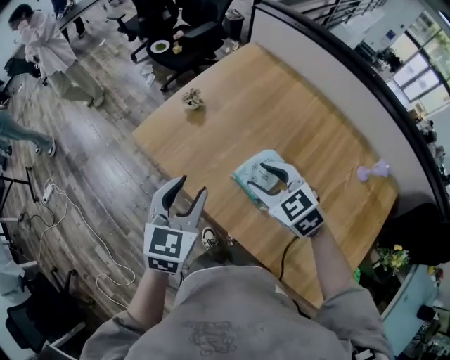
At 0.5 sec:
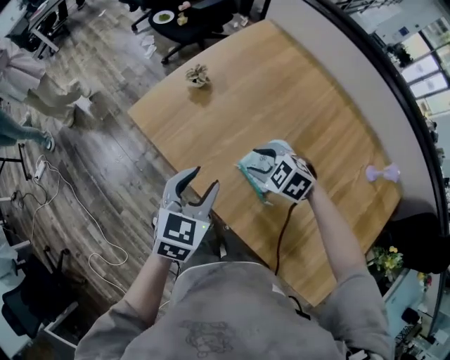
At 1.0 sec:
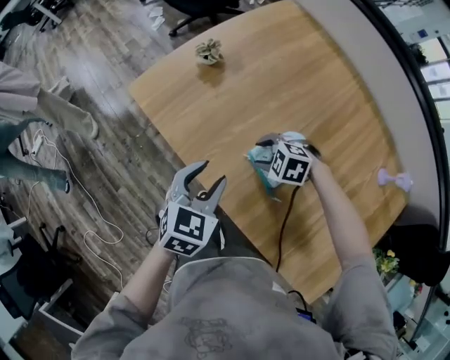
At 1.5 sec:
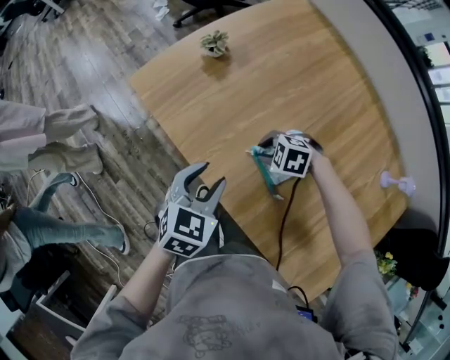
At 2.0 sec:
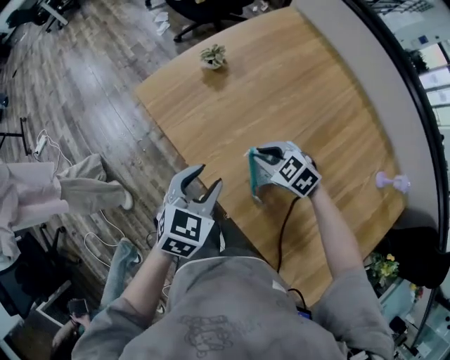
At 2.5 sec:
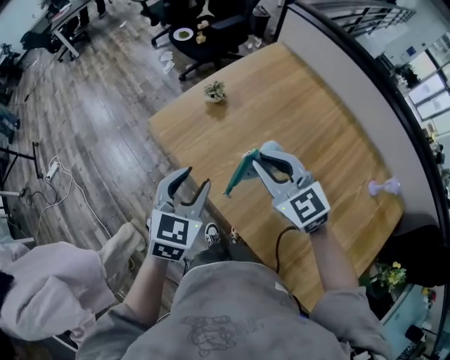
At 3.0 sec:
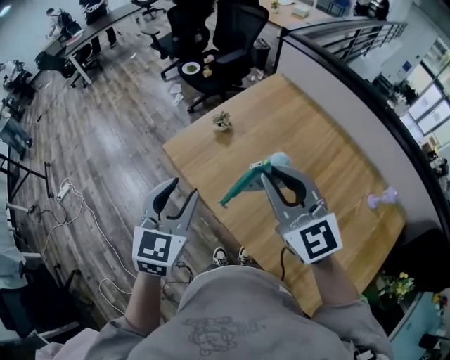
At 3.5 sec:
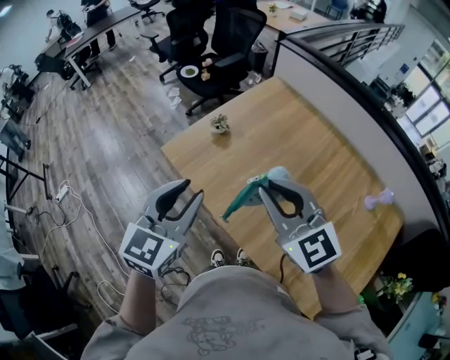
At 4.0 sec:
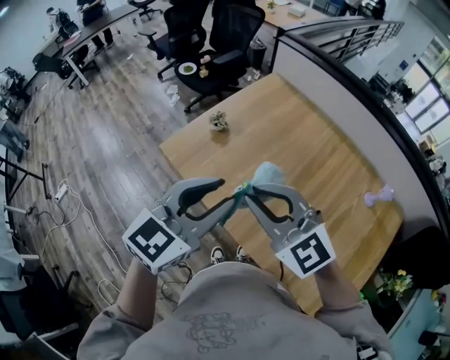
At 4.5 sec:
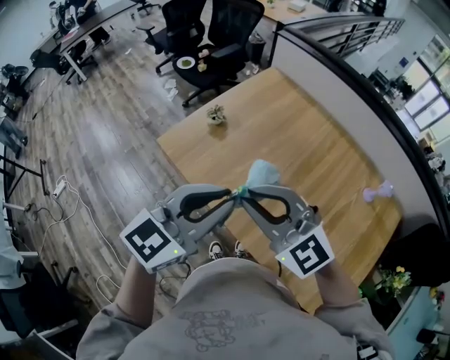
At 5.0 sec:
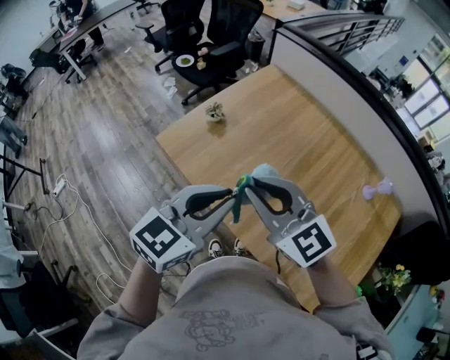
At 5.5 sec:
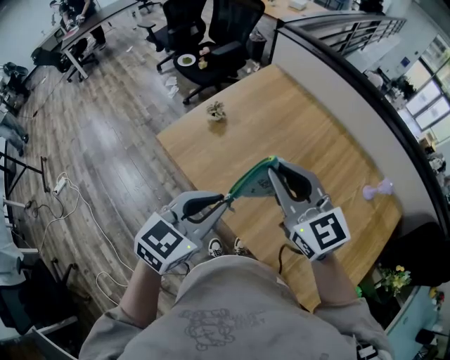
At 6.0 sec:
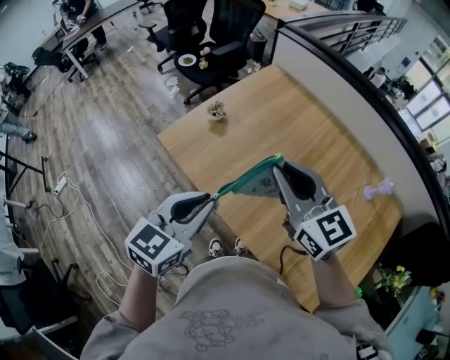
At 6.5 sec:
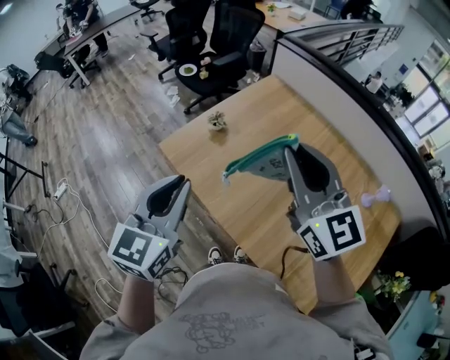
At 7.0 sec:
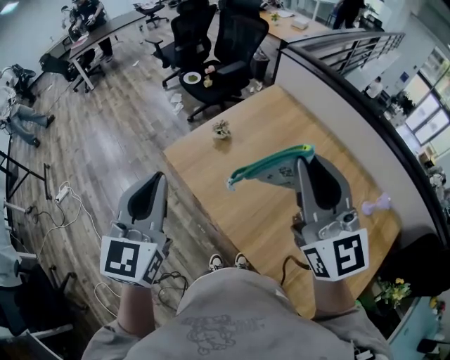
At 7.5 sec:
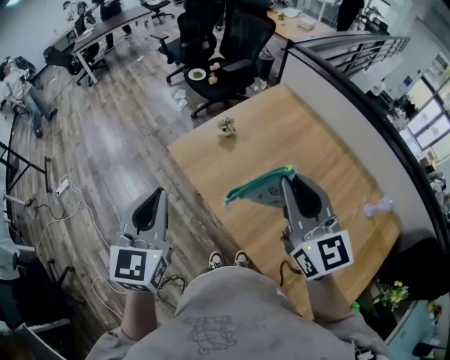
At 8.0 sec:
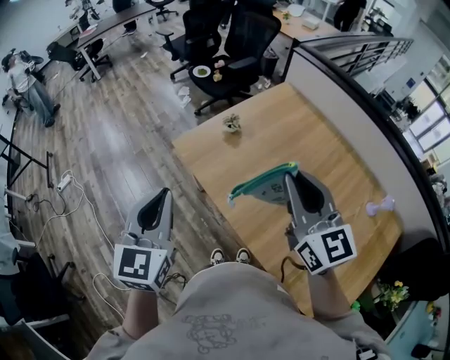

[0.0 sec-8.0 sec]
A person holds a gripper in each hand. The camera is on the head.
0.0 sec to 2.0 sec: The grippers both shift downward by approximately 15 cm. The right gripper rotates some 20 degrees, and closes up.
2.0 sec to 4.0 sec: The grippers both shift upward by roughly 30 cm. The right gripper tilts its fingers about 40 degrees upward, while the left gripper turns by approximately 30 degrees.
4.0 sec to 6.0 sec: The left gripper goes some 10 cm downward, while the right gripper travels to the right by some 5 cm, and turns by roughly 30 degrees.
6.0 sec to 8.0 sec: The right gripper reaches approximately 10 cm upward, then returns, while the left gripper goes roughly 15 cm to the left and upward, and swivels some 40 degrees.

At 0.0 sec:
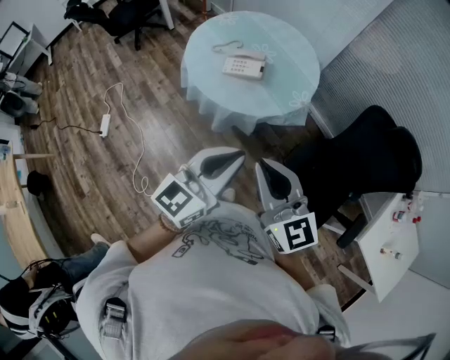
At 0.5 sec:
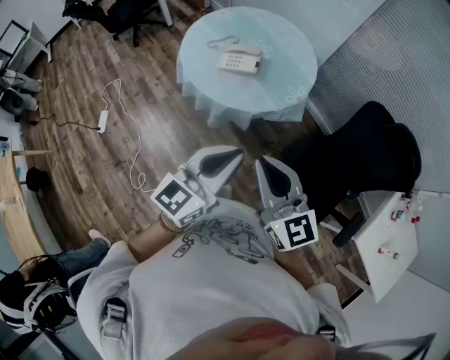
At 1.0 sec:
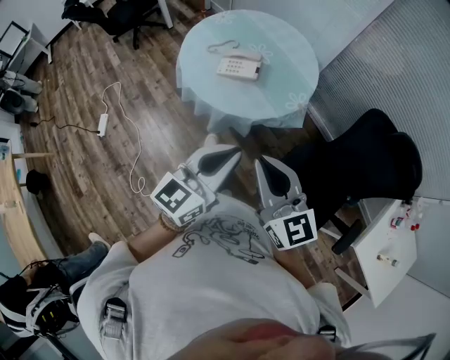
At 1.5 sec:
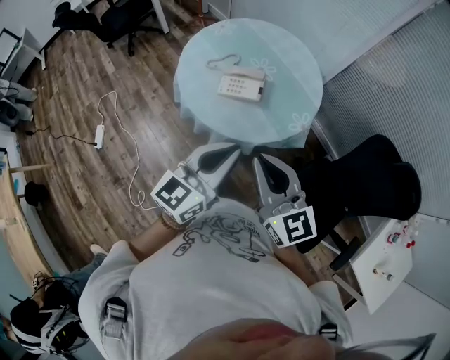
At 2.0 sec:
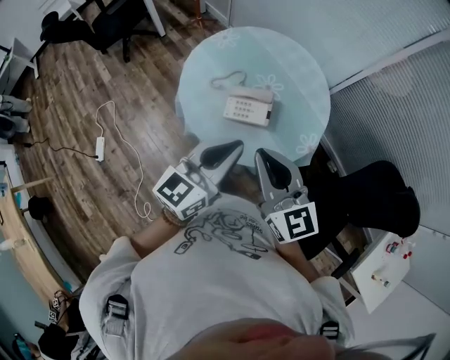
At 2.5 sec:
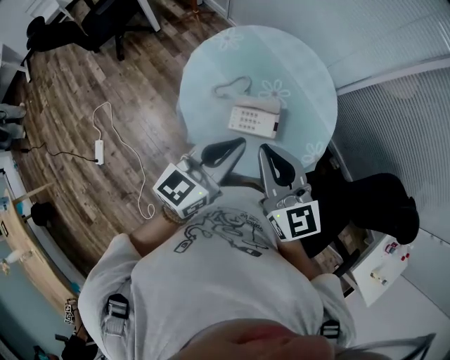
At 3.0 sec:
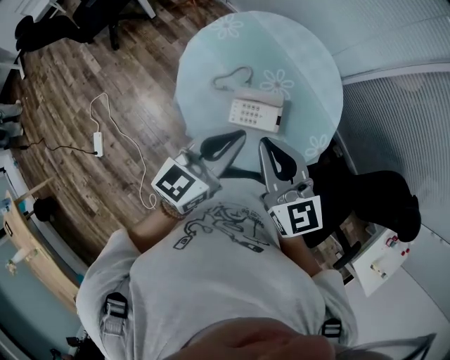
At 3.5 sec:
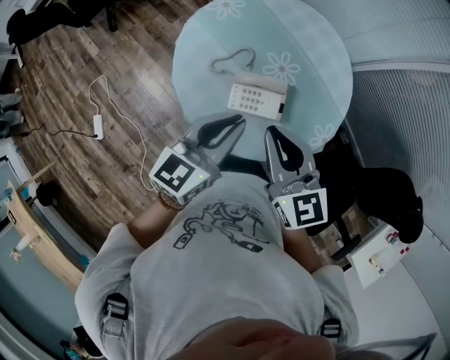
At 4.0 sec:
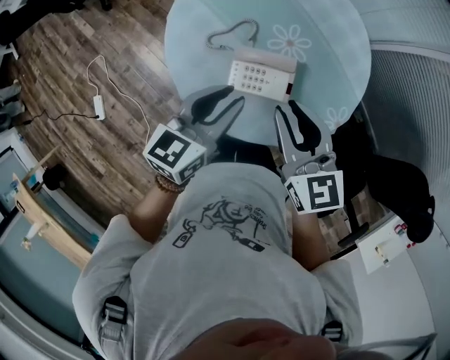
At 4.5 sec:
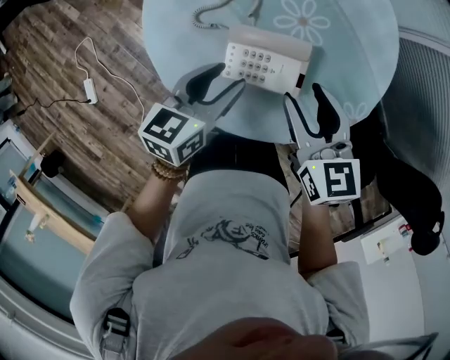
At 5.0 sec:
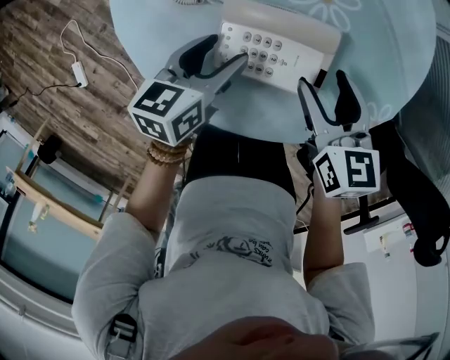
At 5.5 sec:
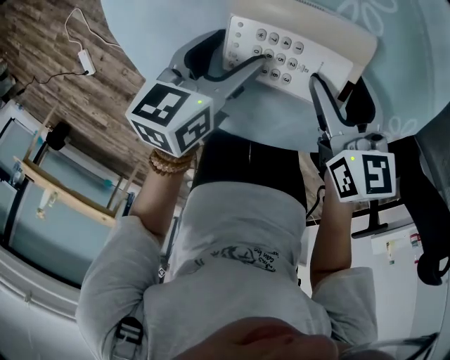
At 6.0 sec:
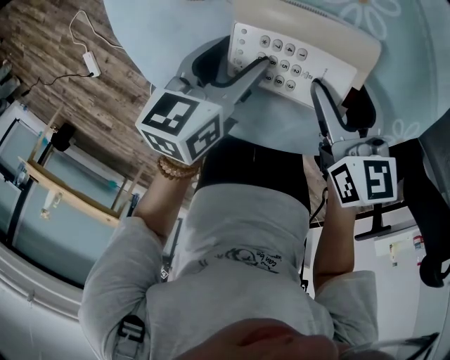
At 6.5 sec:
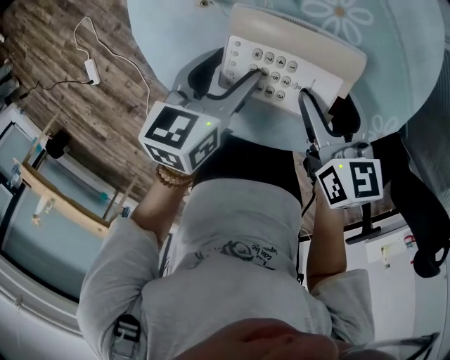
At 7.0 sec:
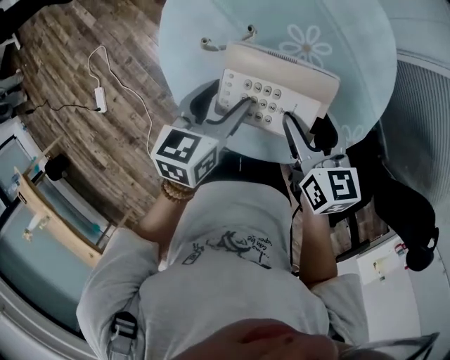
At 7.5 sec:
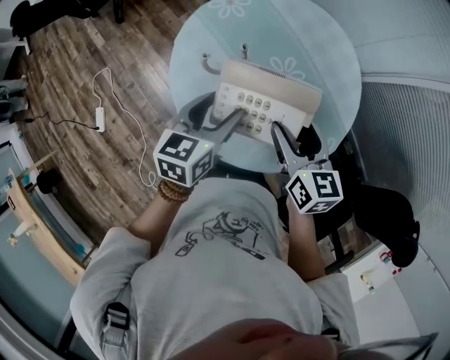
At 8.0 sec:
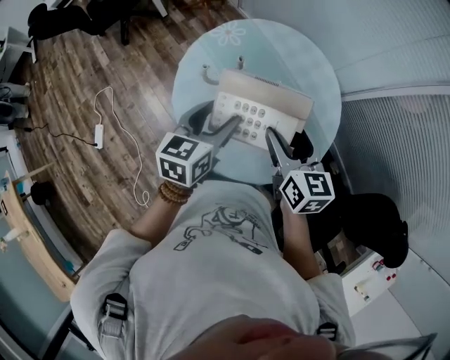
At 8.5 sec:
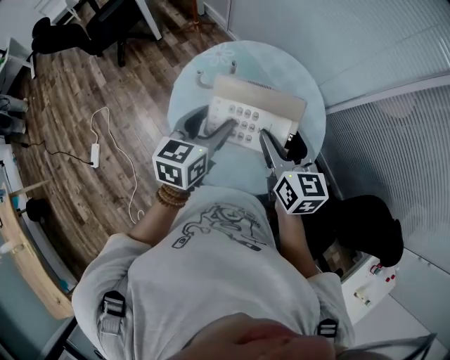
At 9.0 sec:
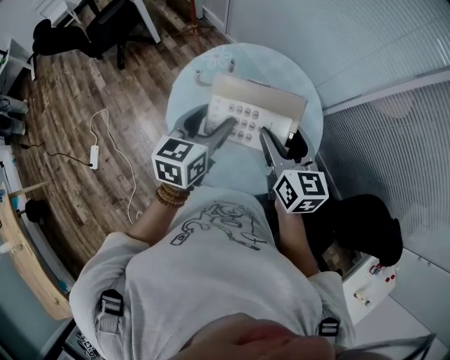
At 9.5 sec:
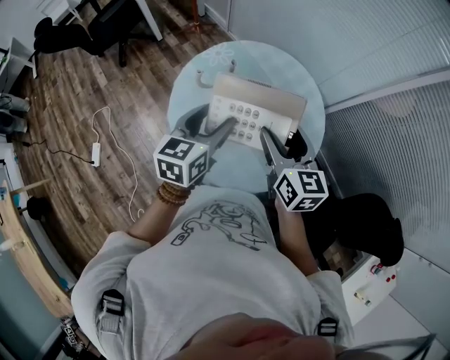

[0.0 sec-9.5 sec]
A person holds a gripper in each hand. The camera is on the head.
0.0 sec to 2.0 sec: The grippers both shift forward by approximately 35 cm.
2.0 sec to 4.0 sec: The two grippers go some 30 cm forward and downward. The left gripper turns by about 20 degrees.
4.0 sec to 5.5 sec: Both grippers move downward, some 35 cm. The left gripper turns by some 30 degrees, and opens. The right gripper swivels about 30 degrees, and opens its fingers.
5.5 sec to 7.5 sec: Both grippers move upward, some 35 cm.
7.5 sec to 9.5 sec: Both grippers move upward, about 15 cm.

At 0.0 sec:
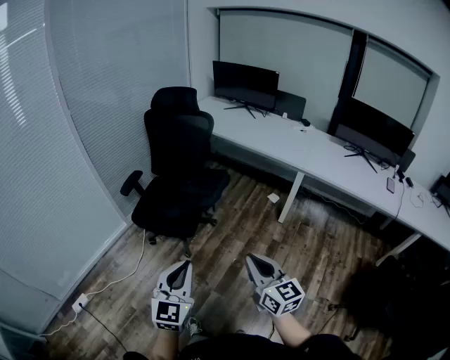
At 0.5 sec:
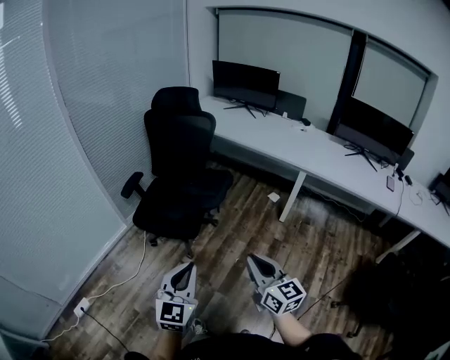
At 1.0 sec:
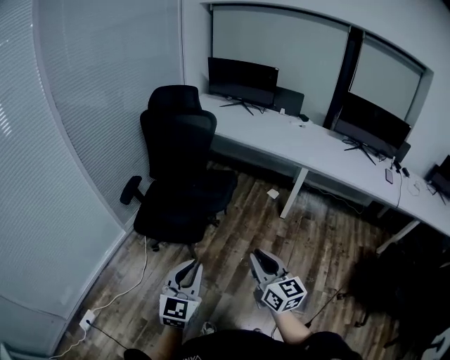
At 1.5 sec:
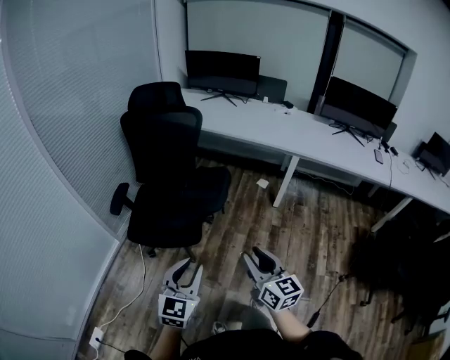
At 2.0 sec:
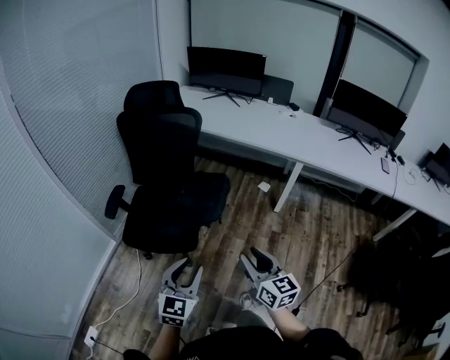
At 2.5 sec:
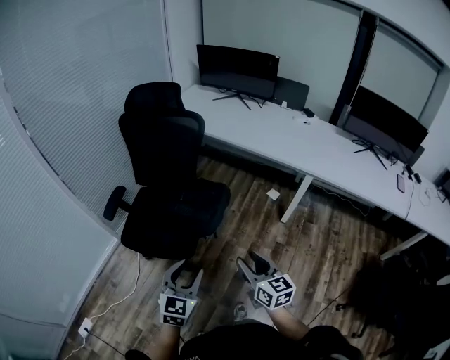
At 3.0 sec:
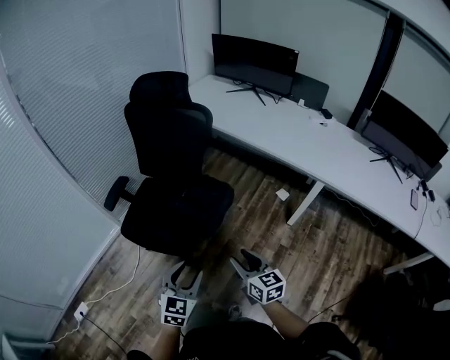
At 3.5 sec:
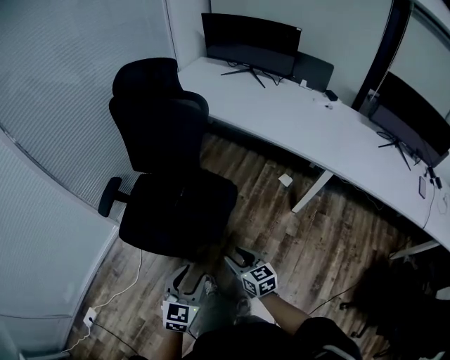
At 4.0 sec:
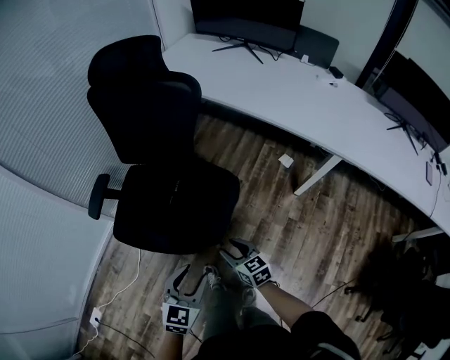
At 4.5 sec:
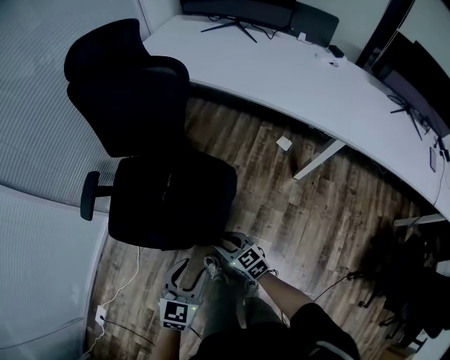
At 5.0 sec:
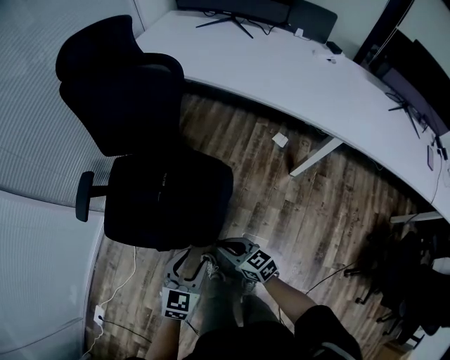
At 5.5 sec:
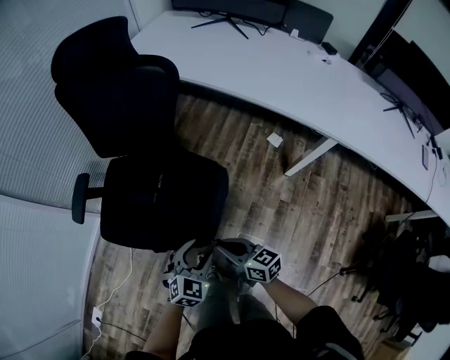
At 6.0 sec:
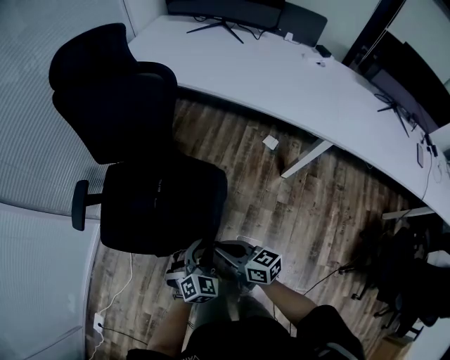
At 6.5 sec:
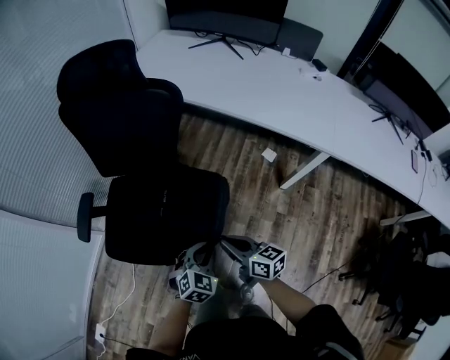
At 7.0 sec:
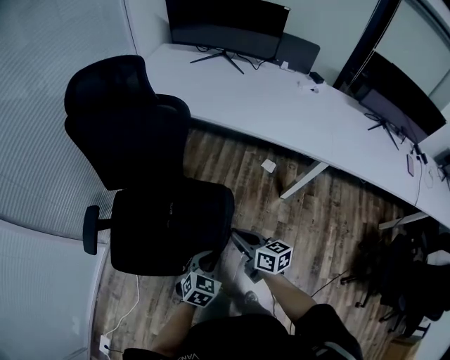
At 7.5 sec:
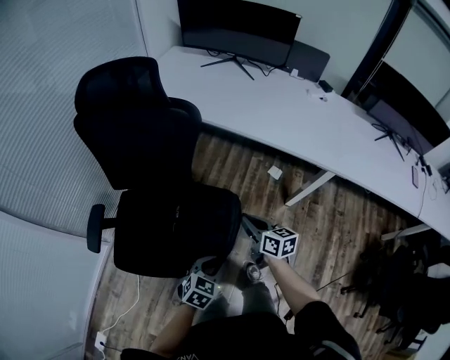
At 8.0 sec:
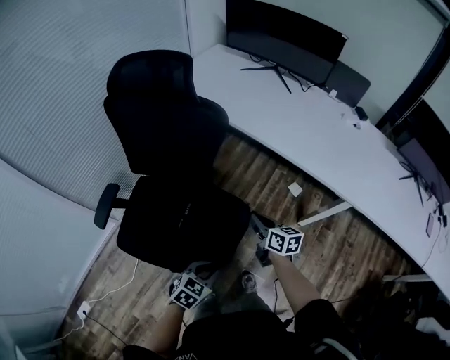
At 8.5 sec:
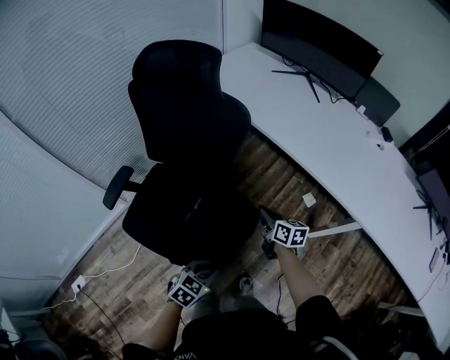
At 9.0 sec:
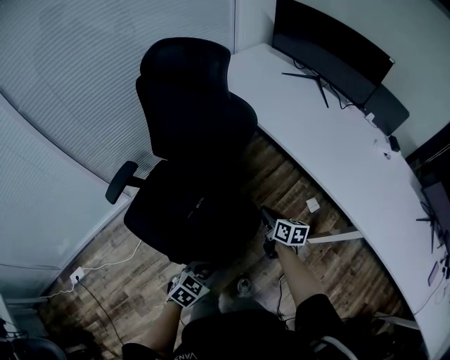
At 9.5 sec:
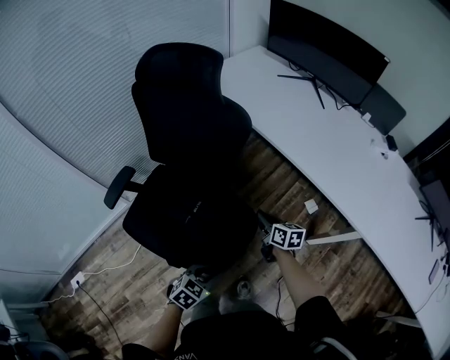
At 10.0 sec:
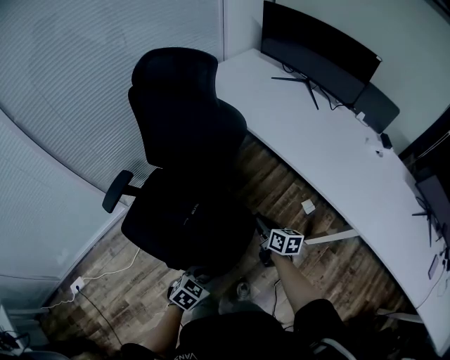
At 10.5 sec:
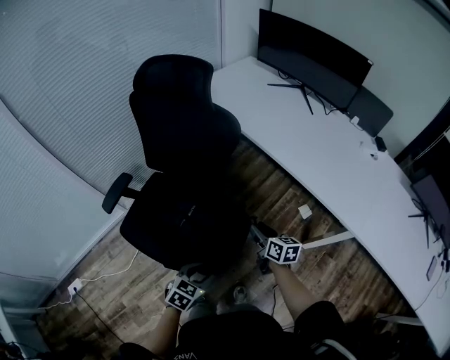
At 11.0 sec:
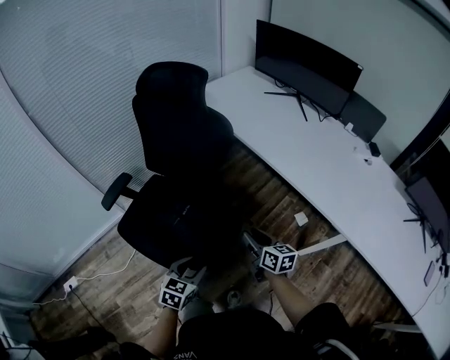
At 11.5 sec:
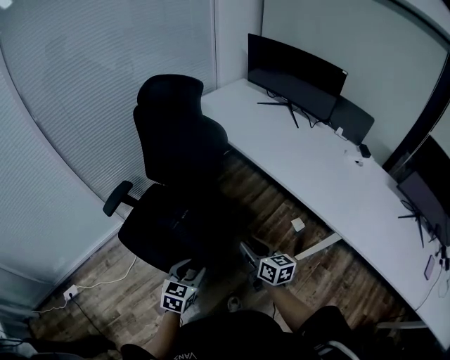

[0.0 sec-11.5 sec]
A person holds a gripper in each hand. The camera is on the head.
0.0 sec to 2.0 sec: The two grippers go approximately 20 cm forward and to the left. The right gripper opens; the left gripper opens up.
2.0 sec to 4.0 sec: The left gripper travels forward, downward and to the right by roughly 30 cm, while the right gripper travels forward and downward by some 40 cm, and swivels about 30 degrees.
4.0 sec to 6.0 sec: The left gripper shifts some 15 cm downward, forward and to the right, and rotates some 30 degrees. Meanwhile the right gripper moves upward, approximately 5 cm, swivels roughly 20 degrees, and closes up.
6.0 sec to 7.5 sec: The left gripper heads upward, covering roughly 5 cm, swivels approximately 30 degrees, and closes, while the right gripper is displaced forward by approximately 15 cm, and swivels roughly 20 degrees.
7.5 sec to 9.5 sec: The right gripper is displaced forward and downward by roughly 15 cm.
9.5 sec to 11.5 sec: The right gripper travels backward and upward by roughly 20 cm, and opens up; the left gripper moves upward, roughly 10 cm, turns by roughly 30 degrees, and opens its fingers.
